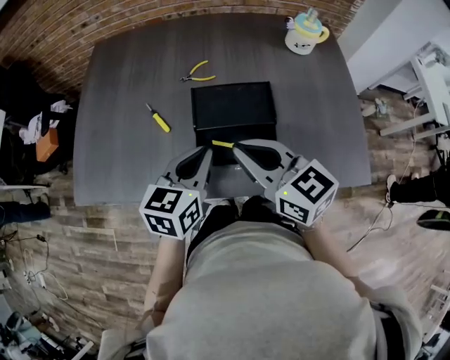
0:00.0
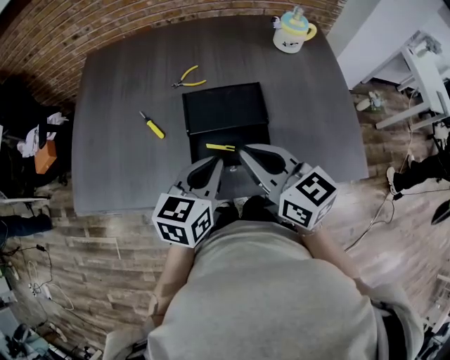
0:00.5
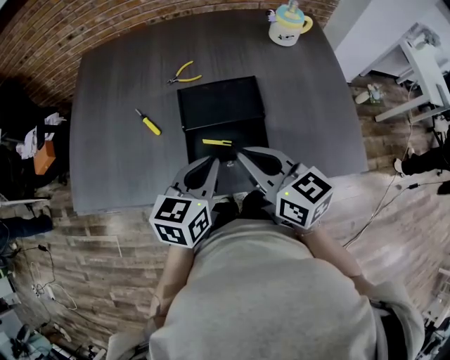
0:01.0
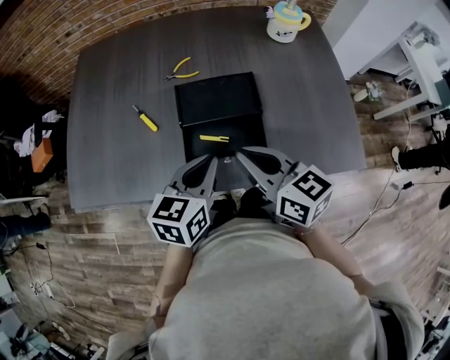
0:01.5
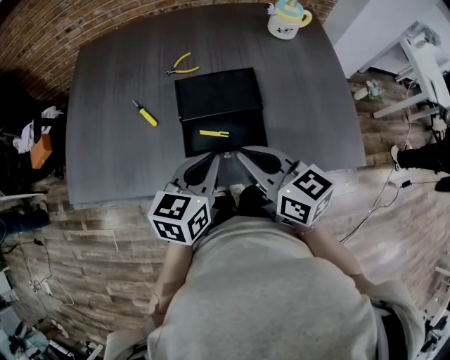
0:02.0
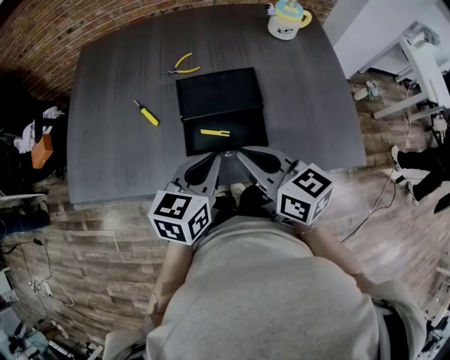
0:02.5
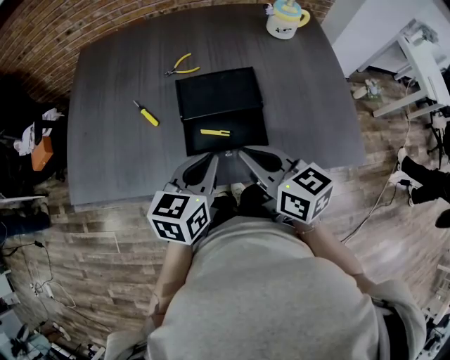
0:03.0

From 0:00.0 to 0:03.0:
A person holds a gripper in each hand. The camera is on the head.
From 0:00.0 to 0:01.5: The left gripper moves roughly 5 cm; the right gripper changes place by some 5 cm.
From 0:01.5 to 0:03.0: The grippers move only a little.

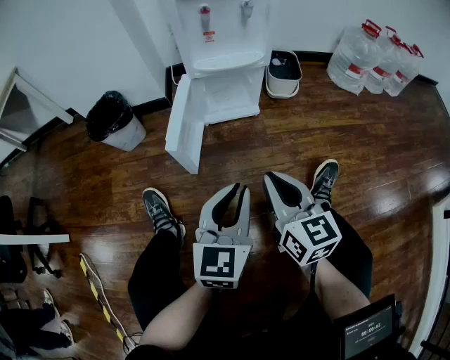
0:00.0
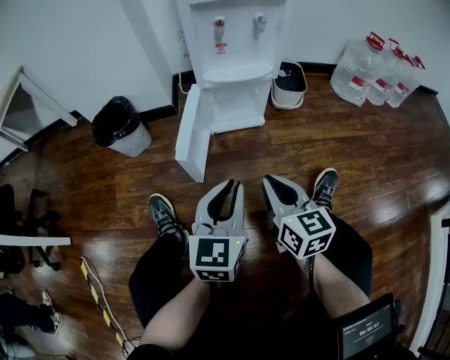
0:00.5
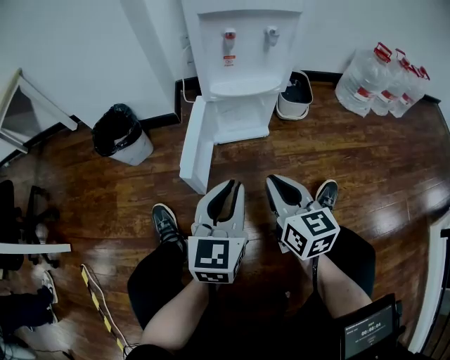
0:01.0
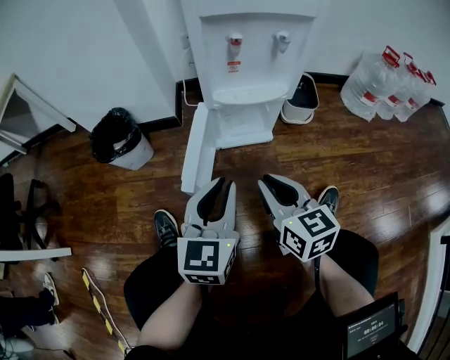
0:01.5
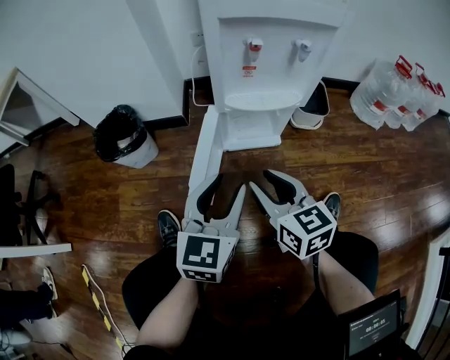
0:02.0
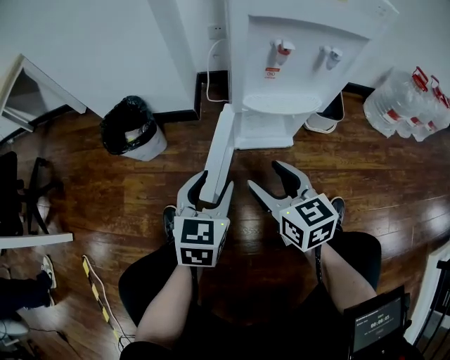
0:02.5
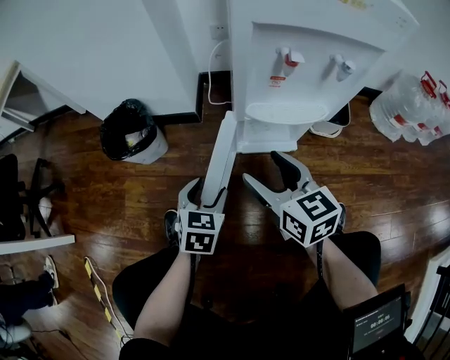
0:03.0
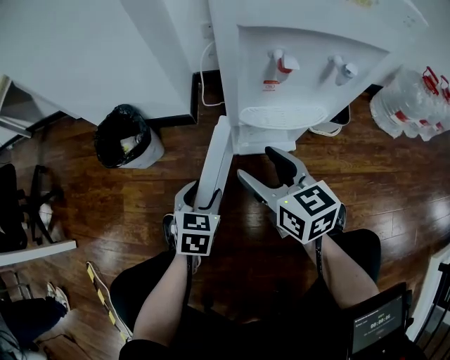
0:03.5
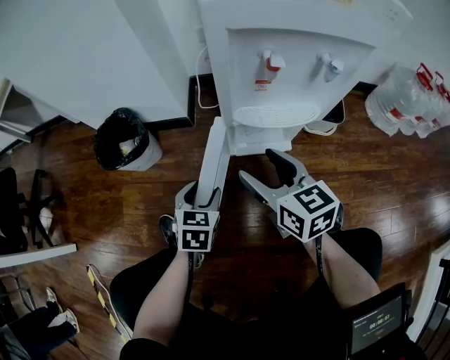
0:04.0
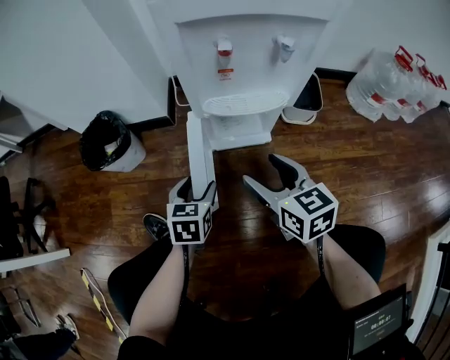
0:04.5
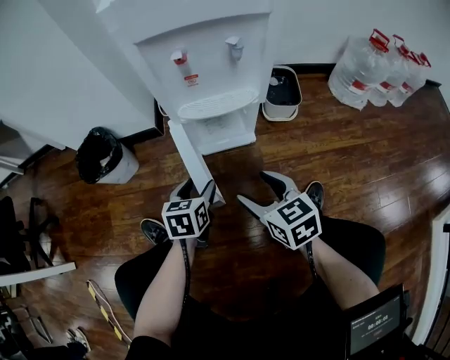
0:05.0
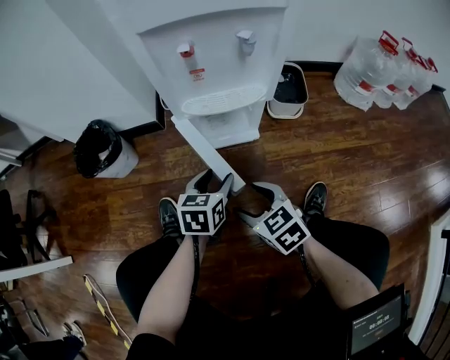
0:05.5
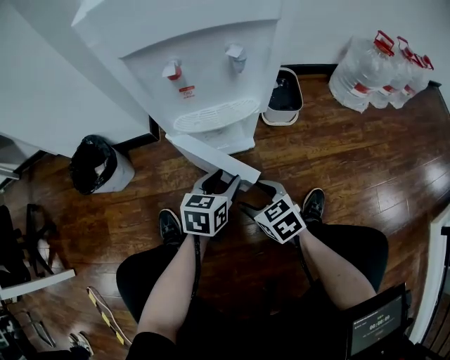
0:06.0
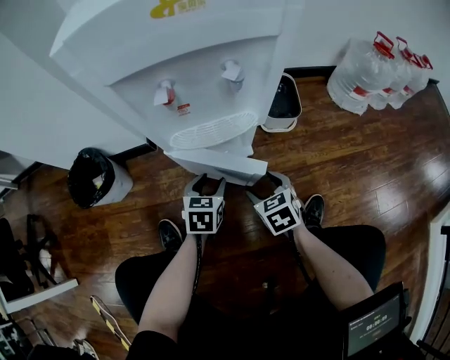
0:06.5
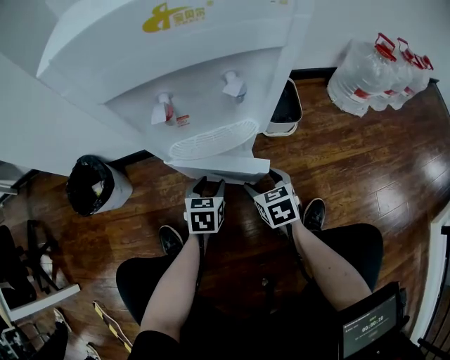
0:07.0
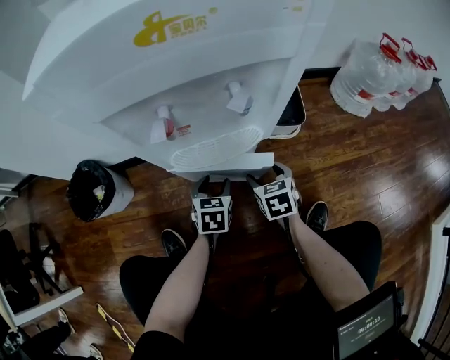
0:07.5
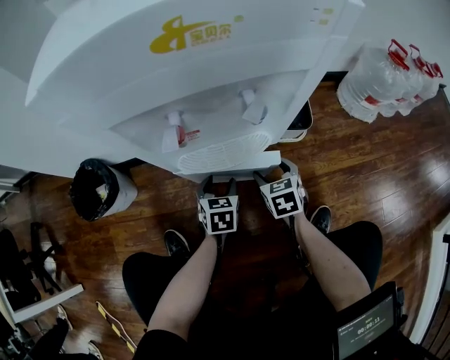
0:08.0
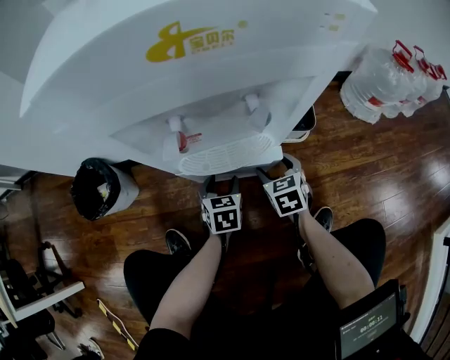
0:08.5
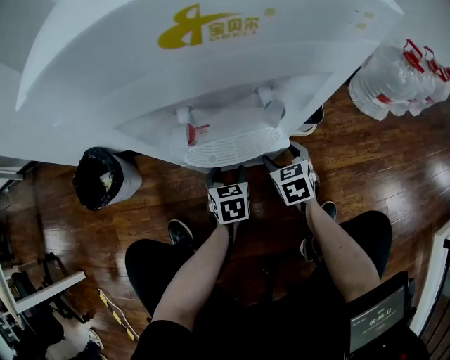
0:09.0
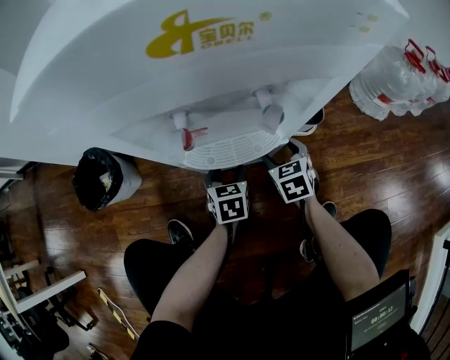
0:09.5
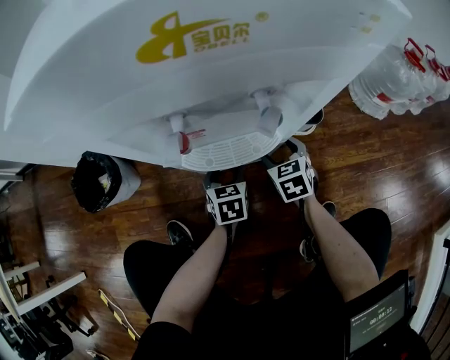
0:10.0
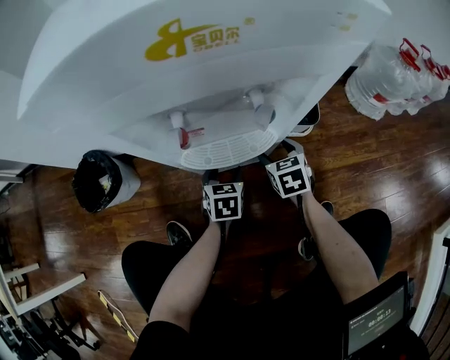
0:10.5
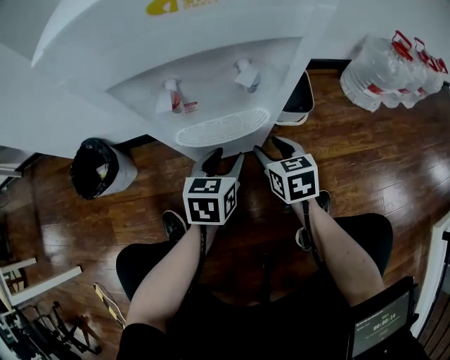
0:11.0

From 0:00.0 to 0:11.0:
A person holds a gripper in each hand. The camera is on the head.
From 0:00.0 to 0:02.0: Both grippers move forward and to the left, approximately 20 cm. The left gripper opens up. Meanwhile the right gripper opens.
From 0:02.0 to 0:03.5: The right gripper is displaced forward by roughly 10 cm, and opens, while the left gripper goes roughly 20 cm downward, forward and to the left, and angles its fingers downward, by some 30 degrees.
From 0:03.5 to 0:05.5: The right gripper shifts about 20 cm backward, downward and to the right, and changes its angle by approximately 30 degrees. The left gripper shifts roughly 15 cm to the right.
From 0:05.5 to 0:07.5: The left gripper goes some 15 cm forward and downward; the right gripper is displaced forward, to the right and downward by roughly 25 cm, and changes its angle by about 30 degrees.
From 0:07.5 to 0:09.0: The right gripper shifts roughly 5 cm forward.
From 0:09.0 to 0:11.0: The right gripper shifts some 5 cm upward. The left gripper moves upward, roughly 10 cm.

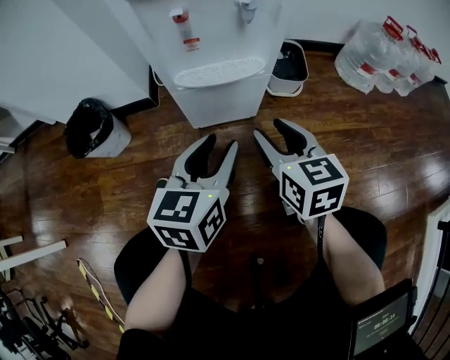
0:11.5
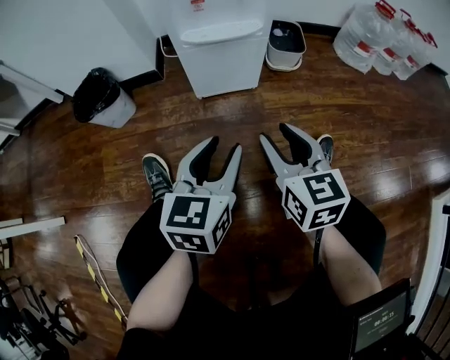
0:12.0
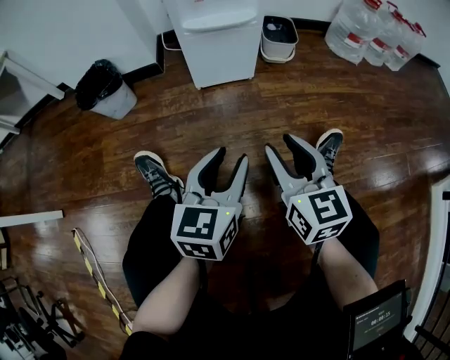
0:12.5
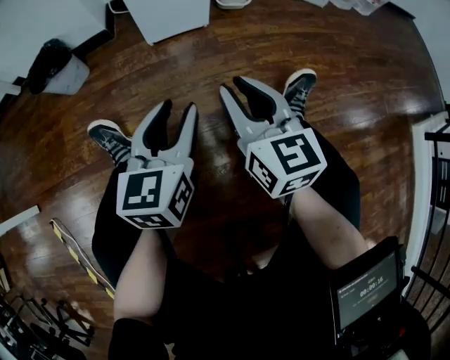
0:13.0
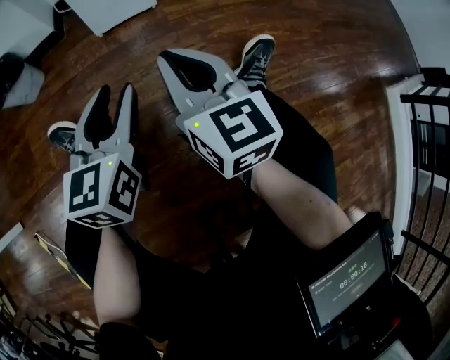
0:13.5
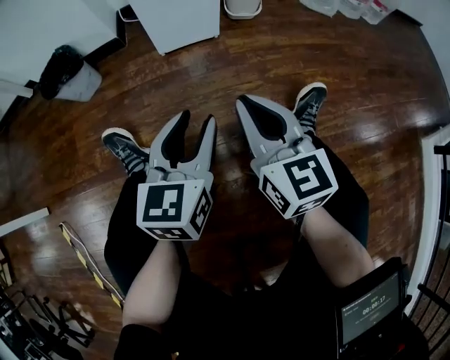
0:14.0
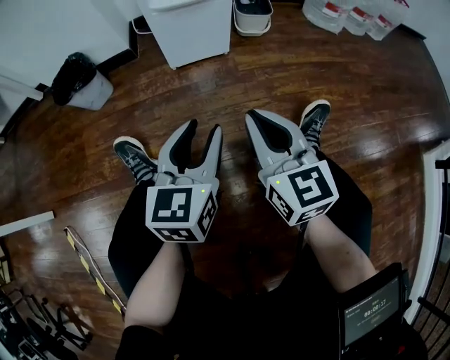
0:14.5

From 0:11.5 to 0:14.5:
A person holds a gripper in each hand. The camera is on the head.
From 0:11.5 to 0:13.0: The two grippers go approximately 25 cm backward.
From 0:13.0 to 0:14.5: The grippers move only a little.

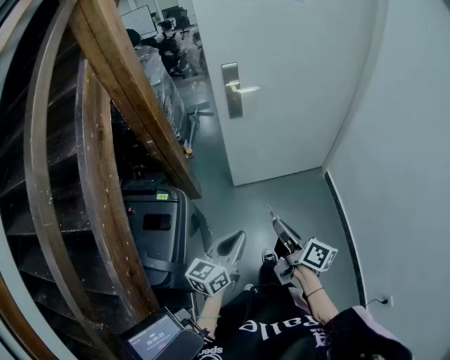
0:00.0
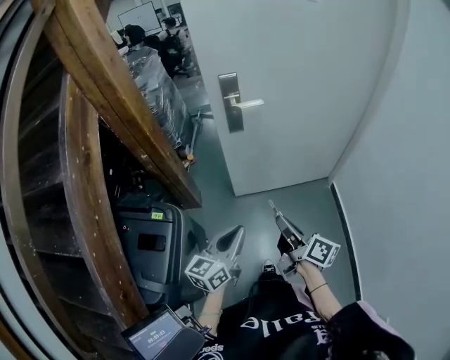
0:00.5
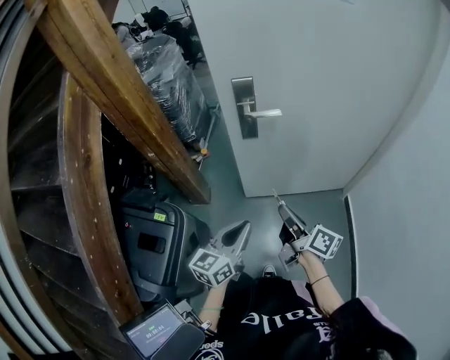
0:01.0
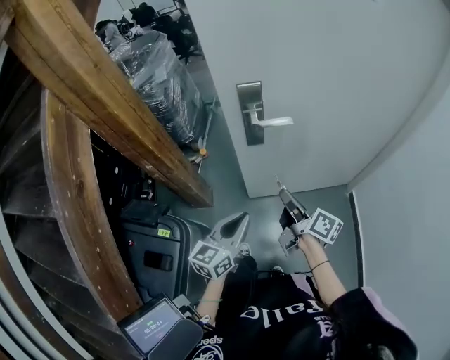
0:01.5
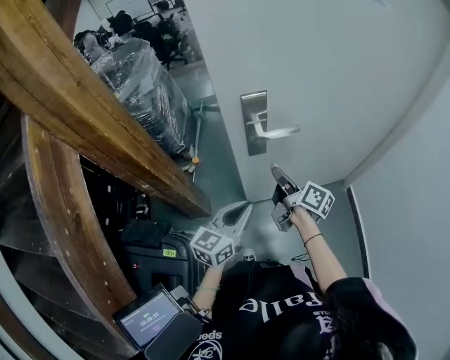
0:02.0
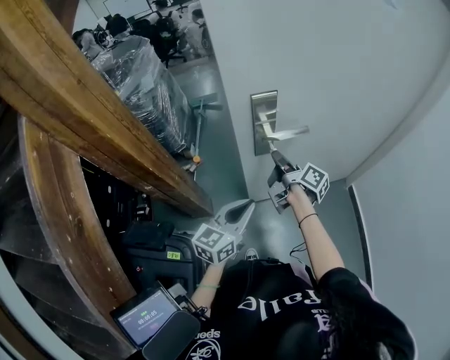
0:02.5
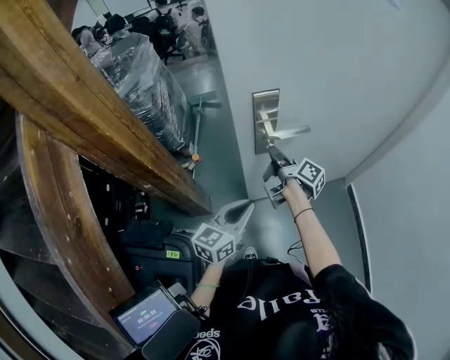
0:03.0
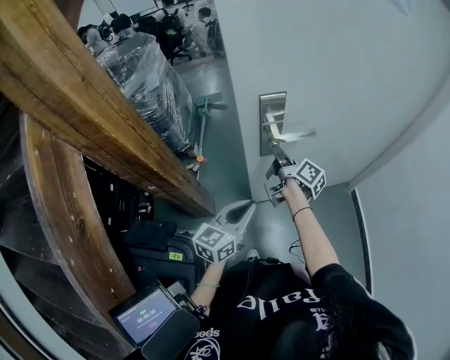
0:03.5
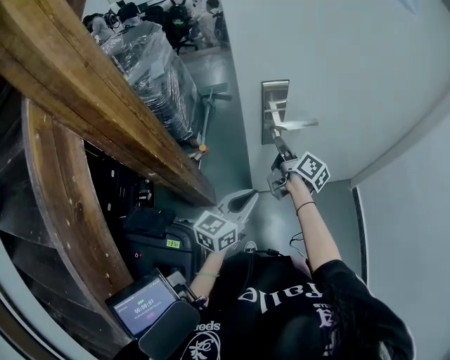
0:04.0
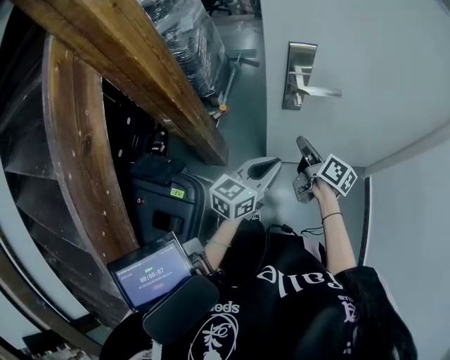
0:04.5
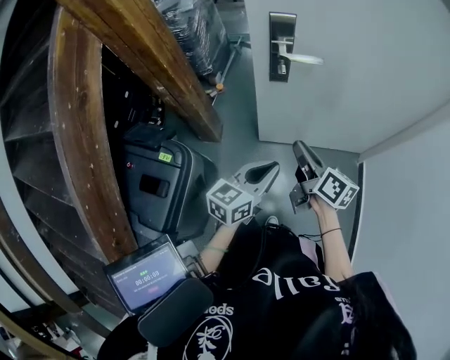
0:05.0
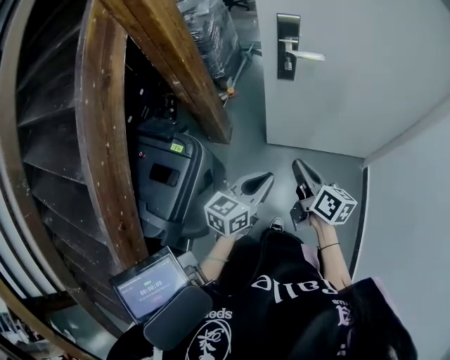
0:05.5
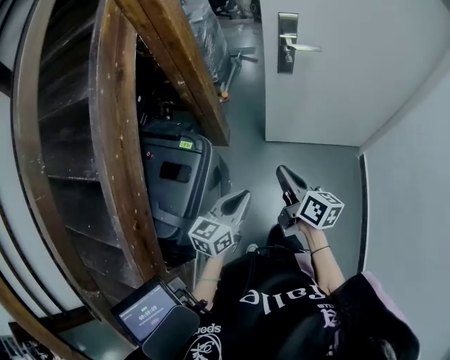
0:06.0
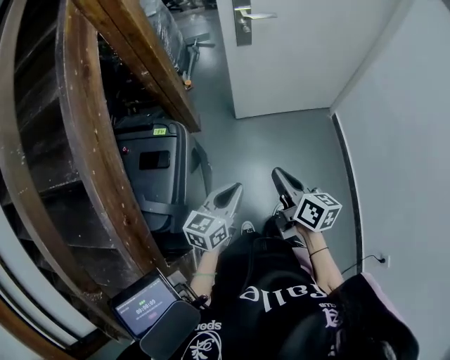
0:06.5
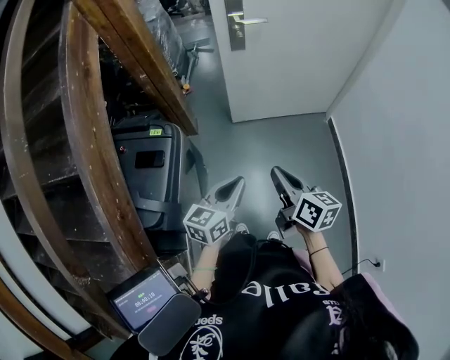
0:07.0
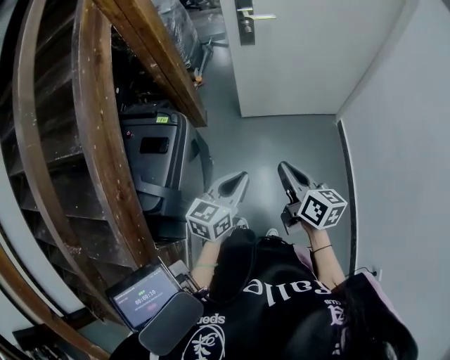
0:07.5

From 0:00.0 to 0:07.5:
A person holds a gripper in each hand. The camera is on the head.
From 0:00.0 to 0:02.0: The two grippers travel together, forward, roughly 50 cm.
From 0:02.0 to 0:04.0: The right gripper shifts some 10 cm forward.
From 0:04.0 to 0:05.5: The right gripper moves backward, roughly 35 cm, and changes its angle by roughly 30 degrees, while the left gripper is displaced backward and to the right by some 25 cm.
From 0:05.5 to 0:07.5: Both grippers move backward, roughly 25 cm.

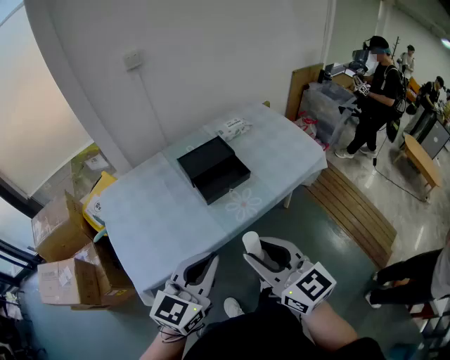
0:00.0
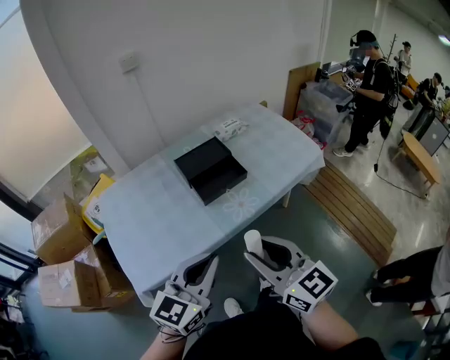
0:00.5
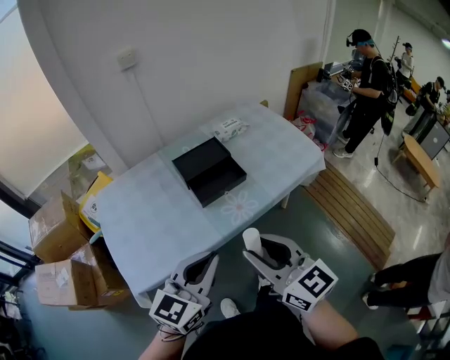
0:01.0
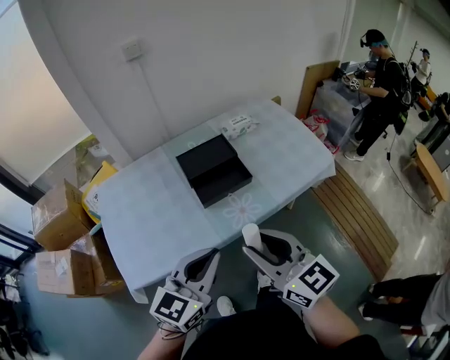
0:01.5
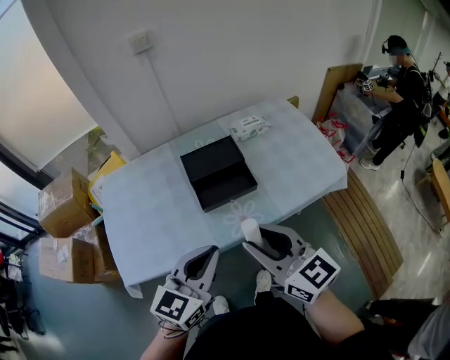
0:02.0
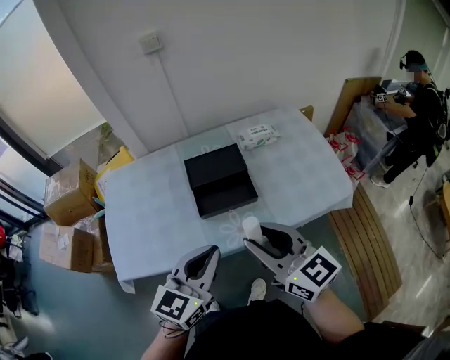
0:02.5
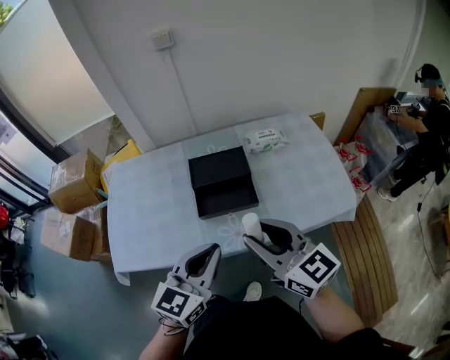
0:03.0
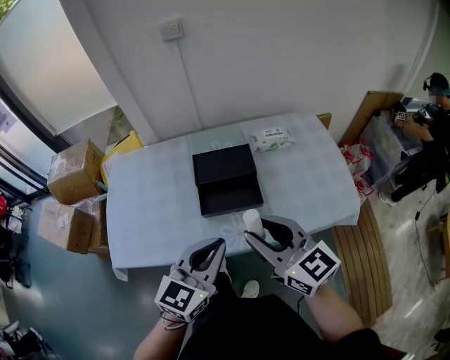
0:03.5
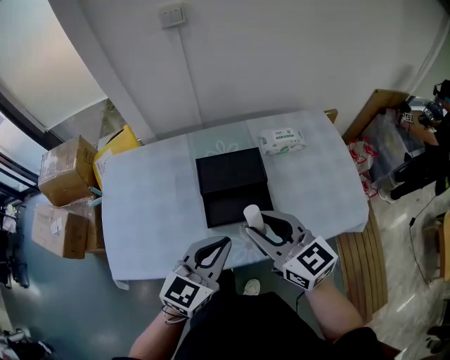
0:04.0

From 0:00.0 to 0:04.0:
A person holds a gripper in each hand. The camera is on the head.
From 0:00.0 to 0:02.0: Both grippers travel together forward and to the right, roughly 15 cm.
From 0:02.0 to 0:04.0: Both grippers move forward, roughly 15 cm.
